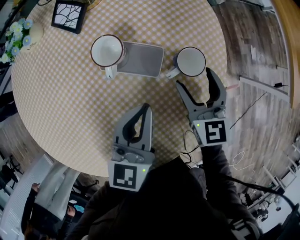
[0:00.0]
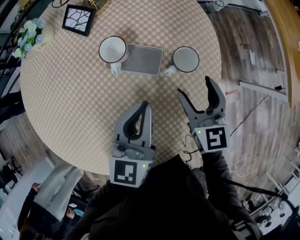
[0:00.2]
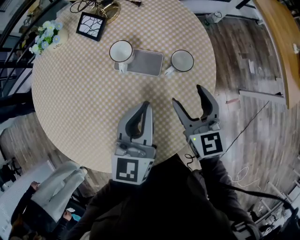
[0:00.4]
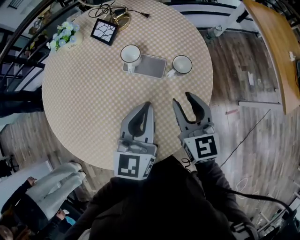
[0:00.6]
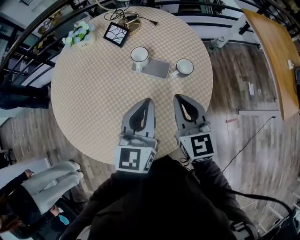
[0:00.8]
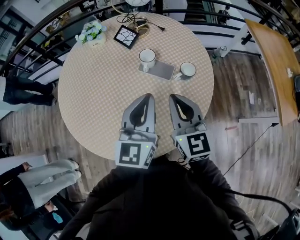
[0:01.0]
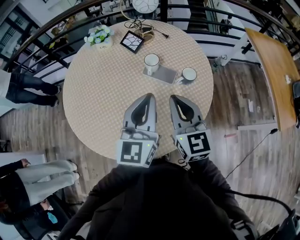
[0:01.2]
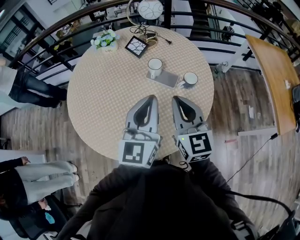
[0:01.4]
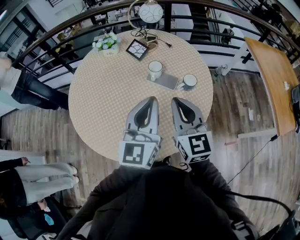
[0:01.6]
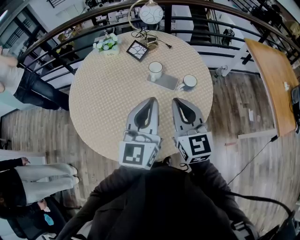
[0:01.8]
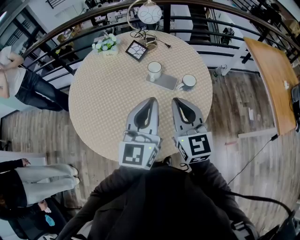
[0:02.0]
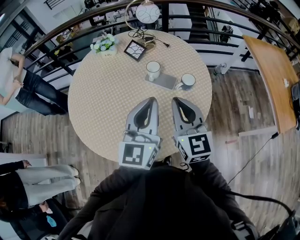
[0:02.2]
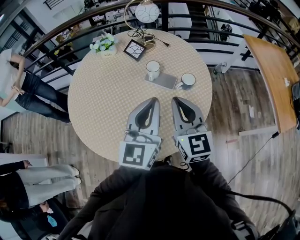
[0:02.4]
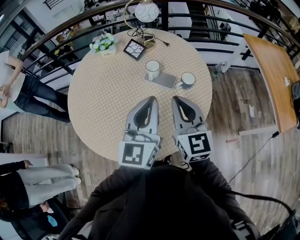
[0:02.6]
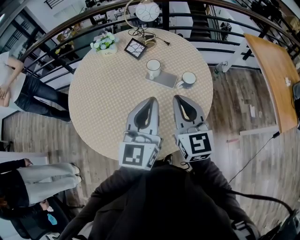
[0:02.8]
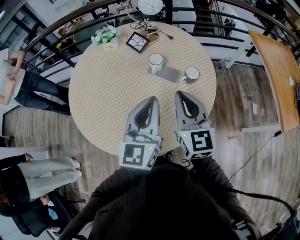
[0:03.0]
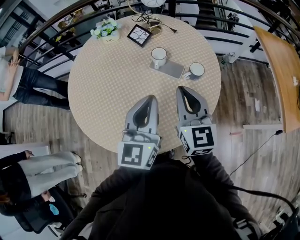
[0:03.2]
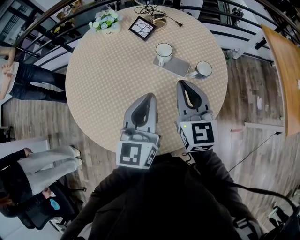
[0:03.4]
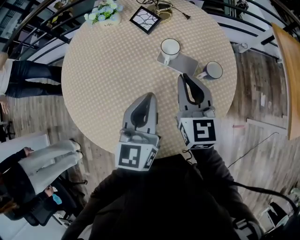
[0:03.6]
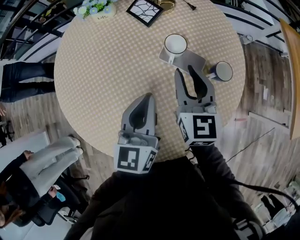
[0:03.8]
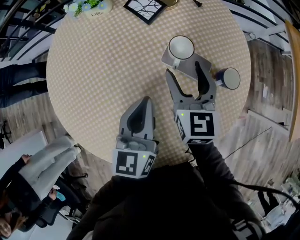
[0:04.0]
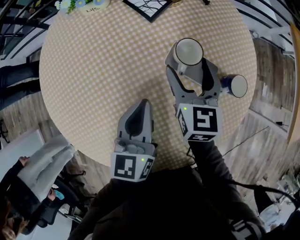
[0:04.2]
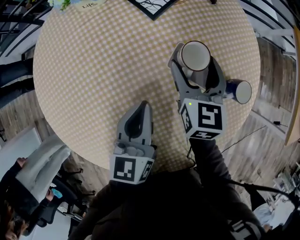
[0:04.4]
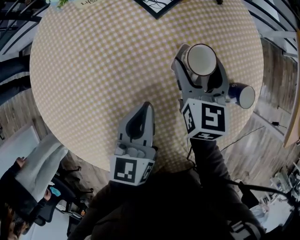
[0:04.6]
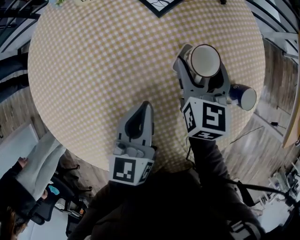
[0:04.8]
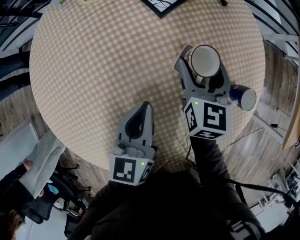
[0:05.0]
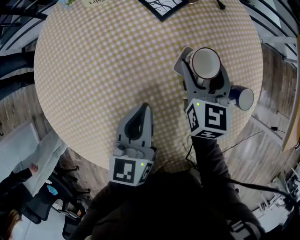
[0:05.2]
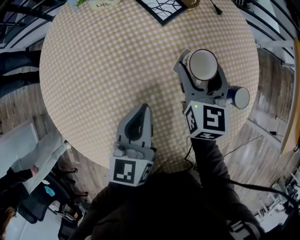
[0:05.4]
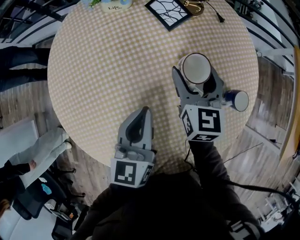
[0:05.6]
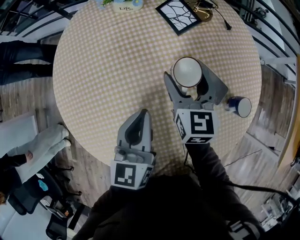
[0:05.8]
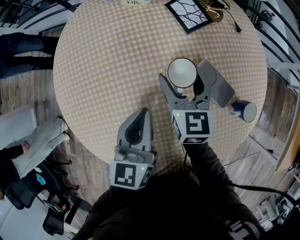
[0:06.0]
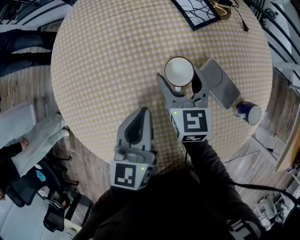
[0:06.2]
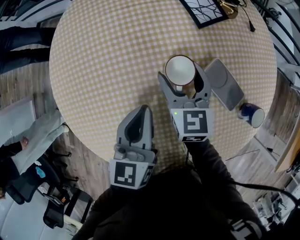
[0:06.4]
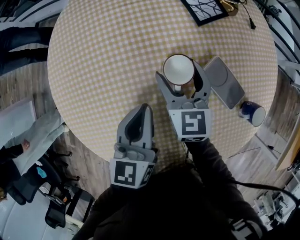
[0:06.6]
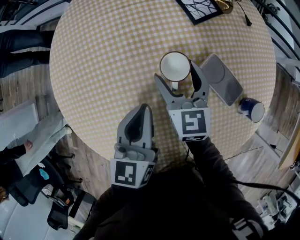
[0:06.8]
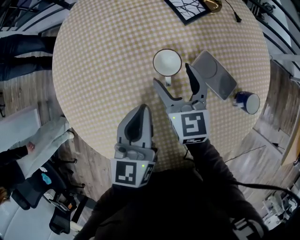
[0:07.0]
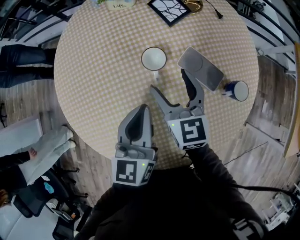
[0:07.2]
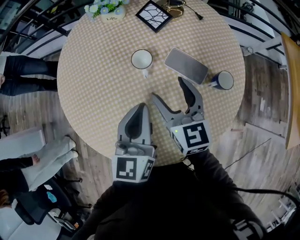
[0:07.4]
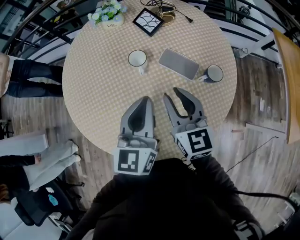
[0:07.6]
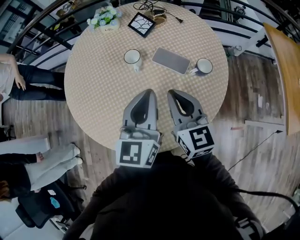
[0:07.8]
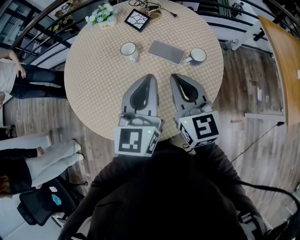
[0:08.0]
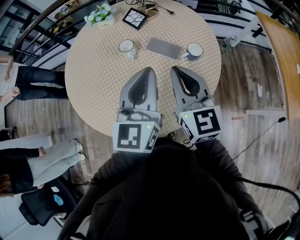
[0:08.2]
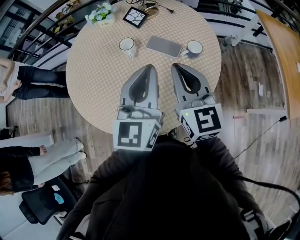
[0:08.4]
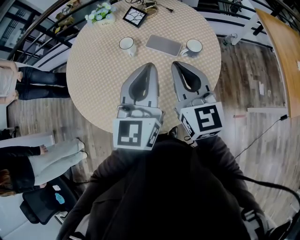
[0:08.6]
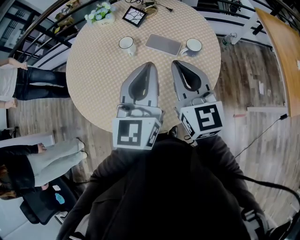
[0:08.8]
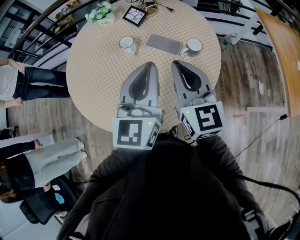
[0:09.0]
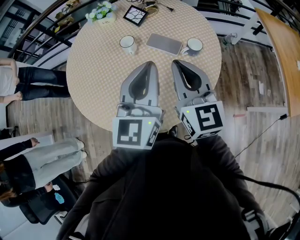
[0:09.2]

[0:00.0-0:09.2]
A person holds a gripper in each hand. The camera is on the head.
0:00.0 to 0:01.6: The right gripper moves upward, backward and to the left, some 30 cm, changes its angle by some 20 degrees, and closes; the left gripper travels upward and backward by some 25 cm, and turns by approximately 30 degrees.
0:01.6 to 0:03.0: There are only small adjustments of the grippers.
0:03.0 to 0:04.6: The right gripper moves forward and downward, about 35 cm, swivels approximately 20 degrees, and opens. Meanwhile the left gripper heads downward, forward and to the left, covering about 30 cm, and rotates roughly 30 degrees.
0:04.6 to 0:06.2: The left gripper is displaced to the left by roughly 10 cm, while the right gripper is displaced to the left by roughly 15 cm, and rotates some 20 degrees.
0:06.2 to 0:07.6: The left gripper heads upward, backward and to the right, covering roughly 20 cm. Meanwhile the right gripper shifts approximately 25 cm backward, upward and to the right, and closes its fingers.
0:07.6 to 0:09.2: The right gripper shifts approximately 15 cm upward, backward and to the right, and closes up. The left gripper travels upward, to the right and backward by approximately 15 cm.

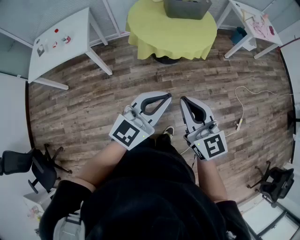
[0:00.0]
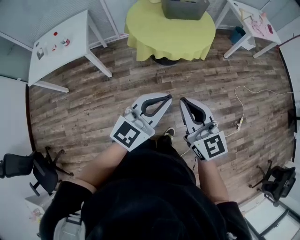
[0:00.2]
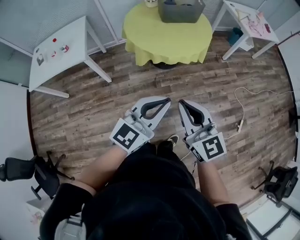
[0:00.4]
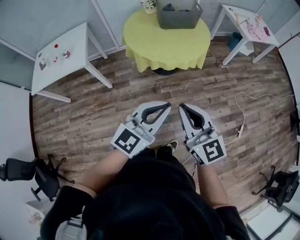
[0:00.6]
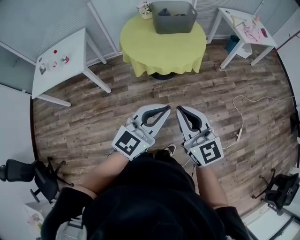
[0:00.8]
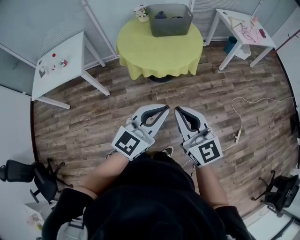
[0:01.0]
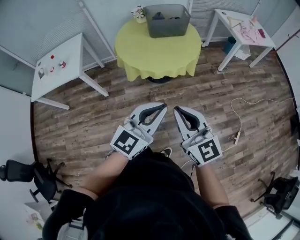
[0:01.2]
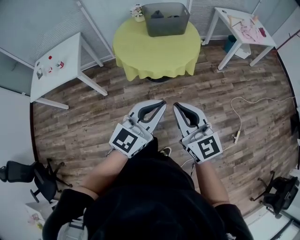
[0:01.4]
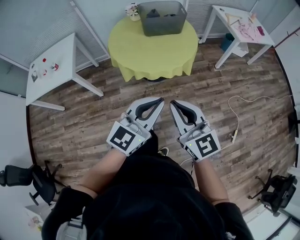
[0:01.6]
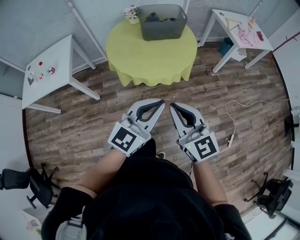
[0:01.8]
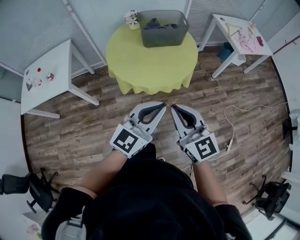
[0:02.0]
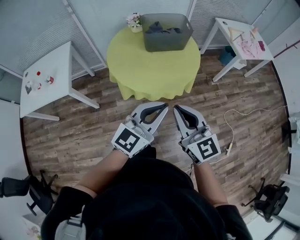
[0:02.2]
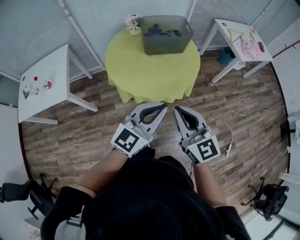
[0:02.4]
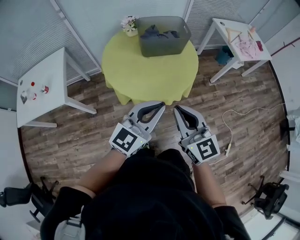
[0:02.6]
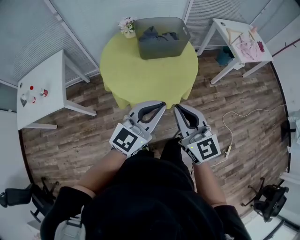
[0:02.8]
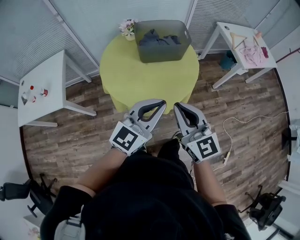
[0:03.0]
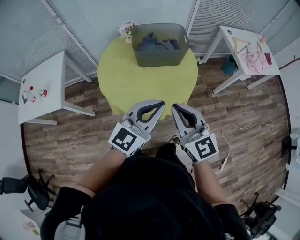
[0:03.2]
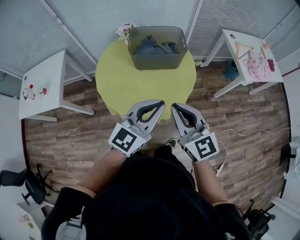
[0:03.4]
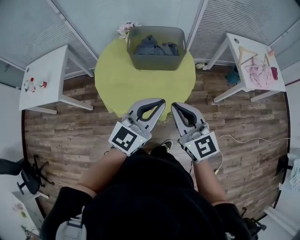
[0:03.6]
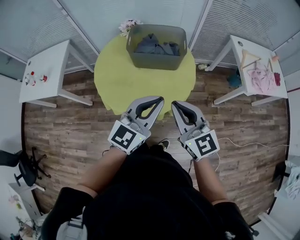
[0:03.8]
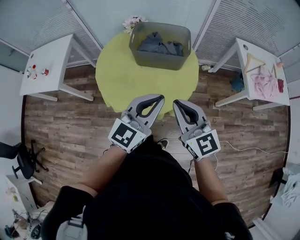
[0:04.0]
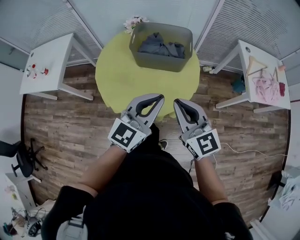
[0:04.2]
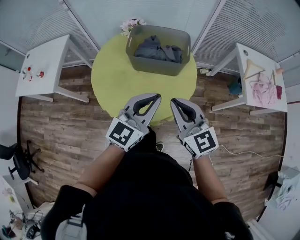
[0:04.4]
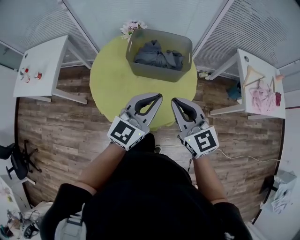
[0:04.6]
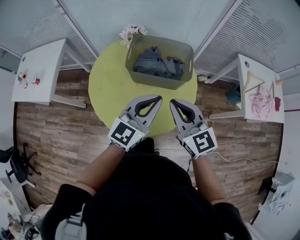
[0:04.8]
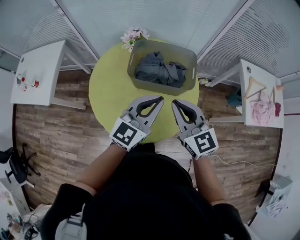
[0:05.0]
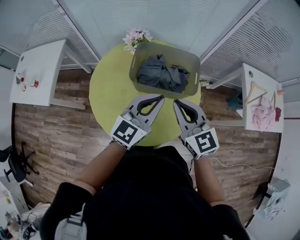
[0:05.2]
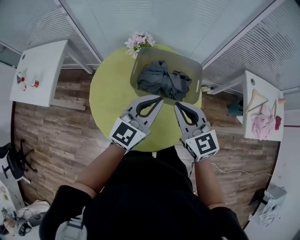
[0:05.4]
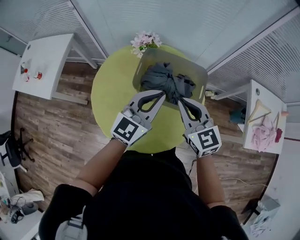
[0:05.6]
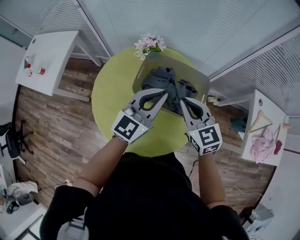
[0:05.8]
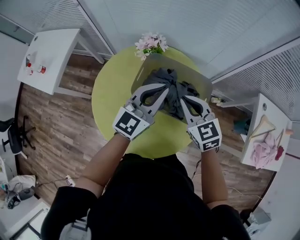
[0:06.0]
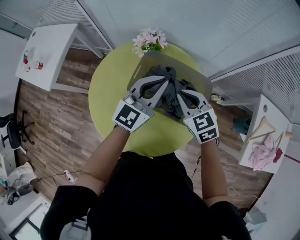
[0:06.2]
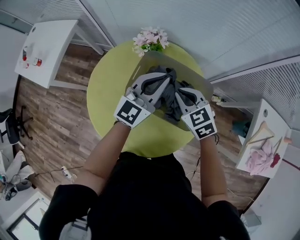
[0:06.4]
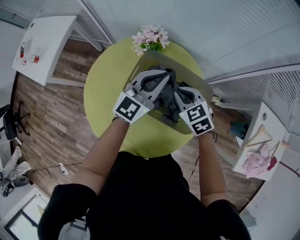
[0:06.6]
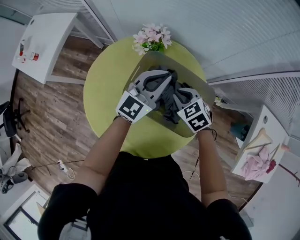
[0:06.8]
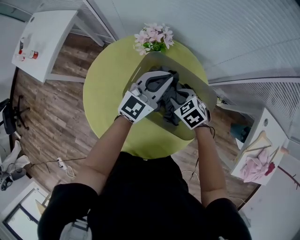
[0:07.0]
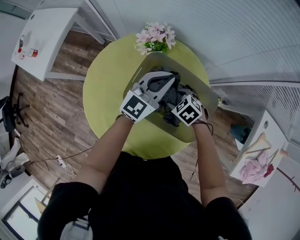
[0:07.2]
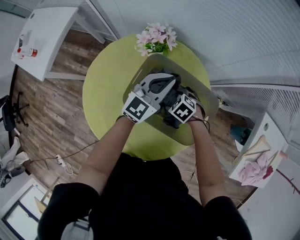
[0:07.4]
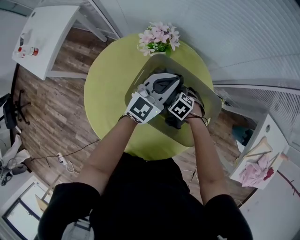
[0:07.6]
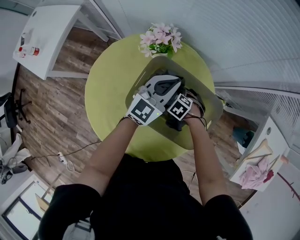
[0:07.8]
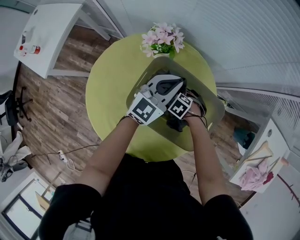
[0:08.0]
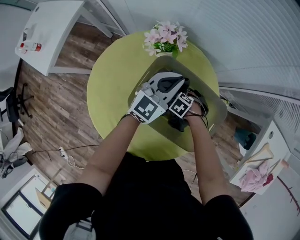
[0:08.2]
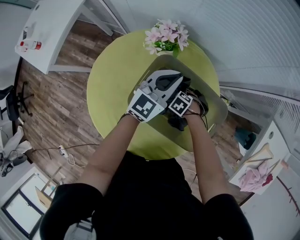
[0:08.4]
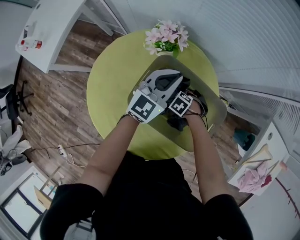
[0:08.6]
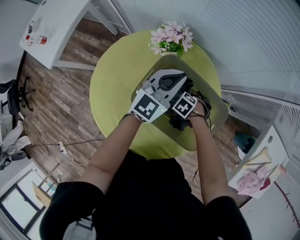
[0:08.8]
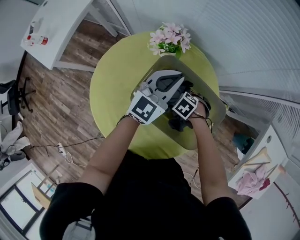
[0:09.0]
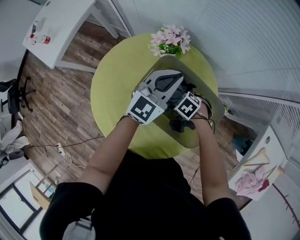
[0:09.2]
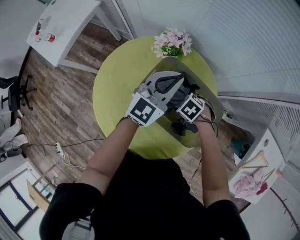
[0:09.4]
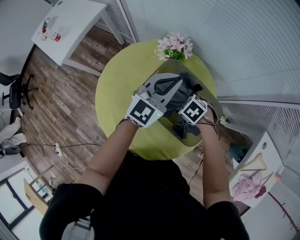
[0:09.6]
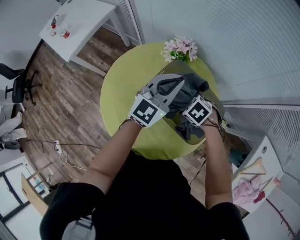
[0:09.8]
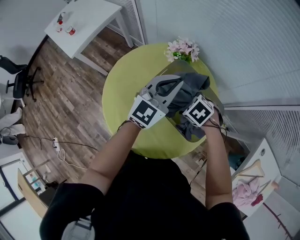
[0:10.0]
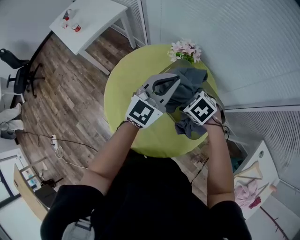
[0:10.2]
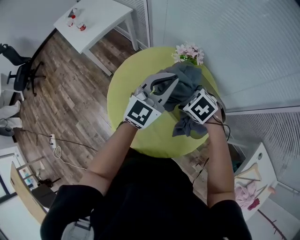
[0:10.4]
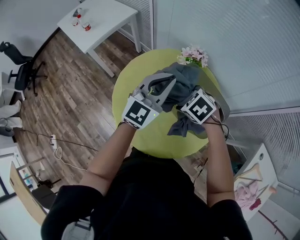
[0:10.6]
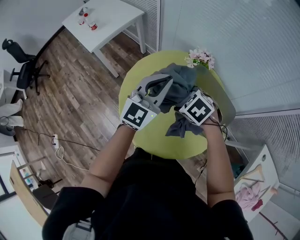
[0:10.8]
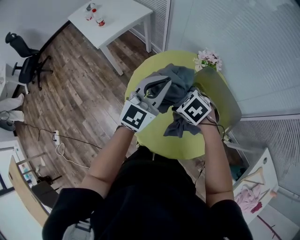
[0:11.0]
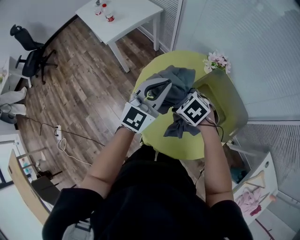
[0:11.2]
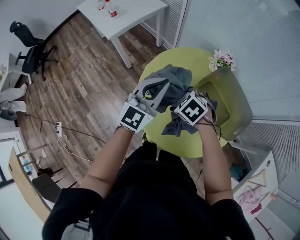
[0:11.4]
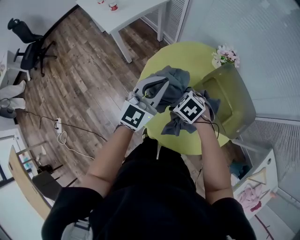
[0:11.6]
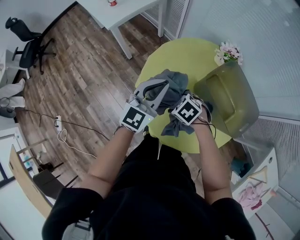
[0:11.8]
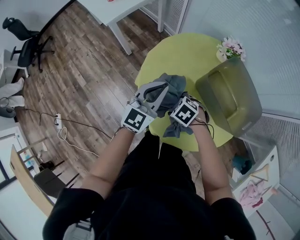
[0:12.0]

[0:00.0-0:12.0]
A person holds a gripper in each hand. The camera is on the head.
0:00.0 to 0:01.6: Both grippers travel together to the right and forward, roughly 15 cm.
0:01.6 to 0:03.0: Both grippers travel together forward, about 25 cm.
0:03.0 to 0:04.4: The two grippers go approximately 20 cm forward and to the right. The left gripper turns by about 20 degrees.
0:04.4 to 0:06.0: The grippers both shift forward by approximately 30 cm. The right gripper changes its angle by approximately 20 degrees.
0:06.0 to 0:07.6: The right gripper heads downward, covering some 30 cm, tips its fingers downward by roughly 40 degrees, and opens. The left gripper is displaced downward by about 15 cm.
0:09.0 to 0:10.4: The right gripper moves upward, some 25 cm, while the left gripper shifts by roughly 20 cm.
0:10.4 to 0:12.0: The two grippers go approximately 30 cm to the left and downward.

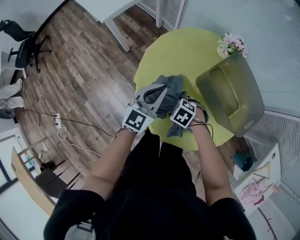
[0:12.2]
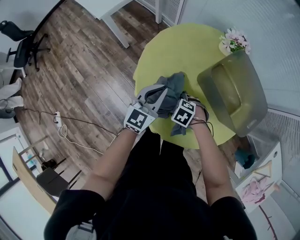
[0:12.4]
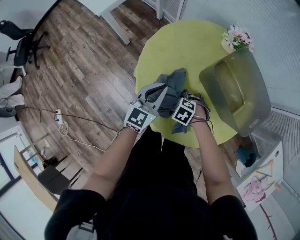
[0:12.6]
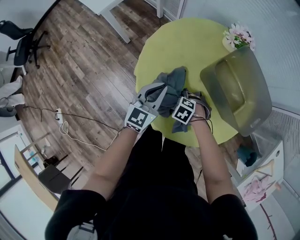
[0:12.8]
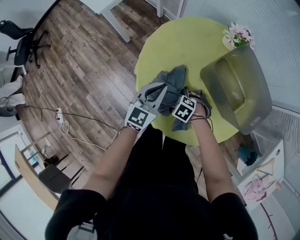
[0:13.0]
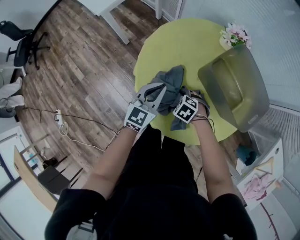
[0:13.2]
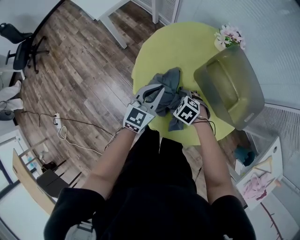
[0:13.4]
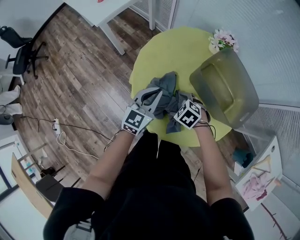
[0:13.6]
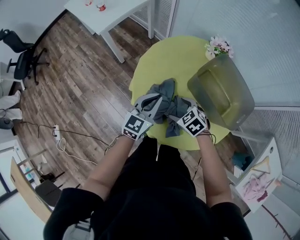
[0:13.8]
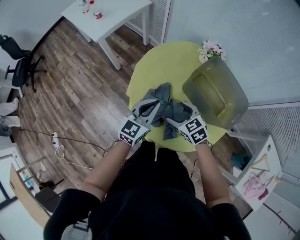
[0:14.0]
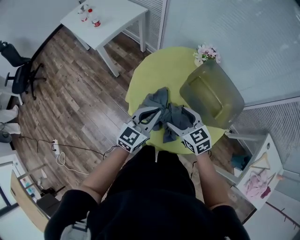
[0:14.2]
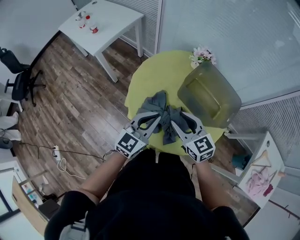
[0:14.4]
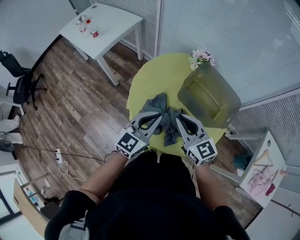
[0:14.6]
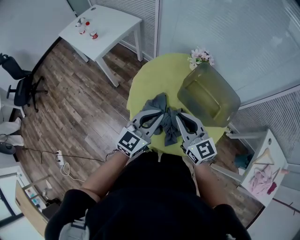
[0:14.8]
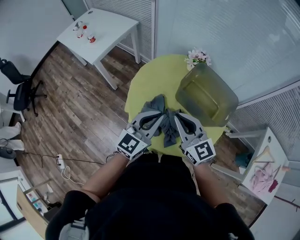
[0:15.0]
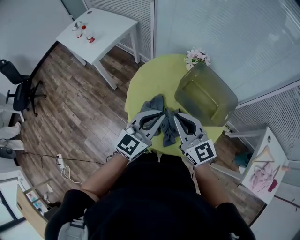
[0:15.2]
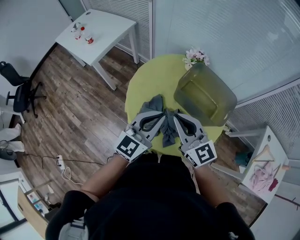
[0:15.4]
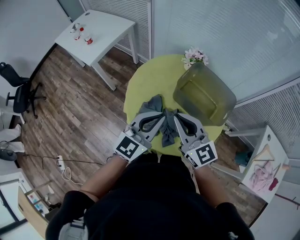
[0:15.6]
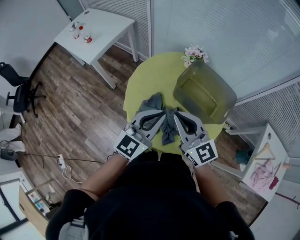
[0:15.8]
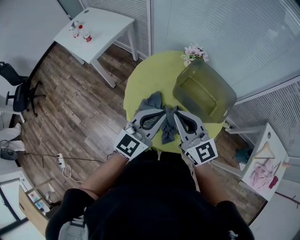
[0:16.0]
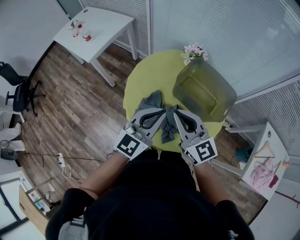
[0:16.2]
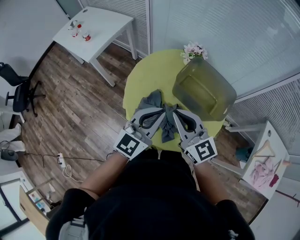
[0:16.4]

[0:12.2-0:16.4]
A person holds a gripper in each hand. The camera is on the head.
0:12.2 to 0:13.6: The right gripper moves roughly 10 cm downward and comes back.
0:13.6 to 0:15.0: The left gripper is displaced upward and backward by about 20 cm, while the right gripper moves upward, some 30 cm, points its fingers approximately 60 degrees further upward, and closes up.
0:15.0 to 0:16.4: The grippers make only small movements.
